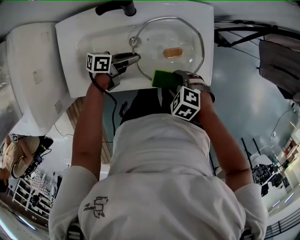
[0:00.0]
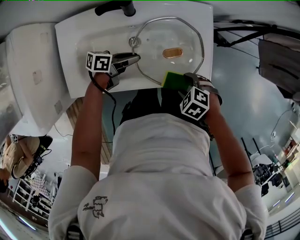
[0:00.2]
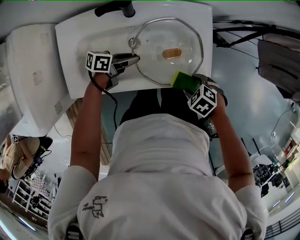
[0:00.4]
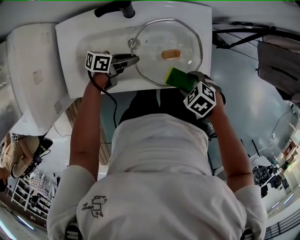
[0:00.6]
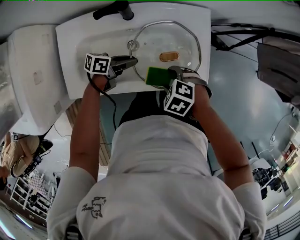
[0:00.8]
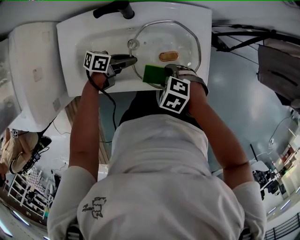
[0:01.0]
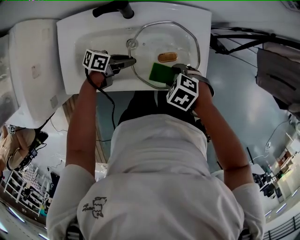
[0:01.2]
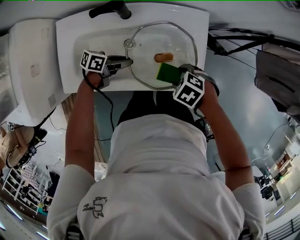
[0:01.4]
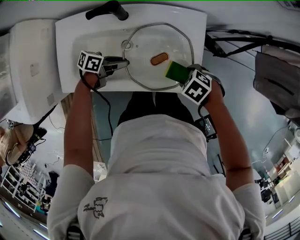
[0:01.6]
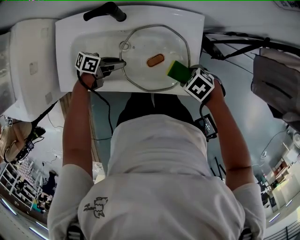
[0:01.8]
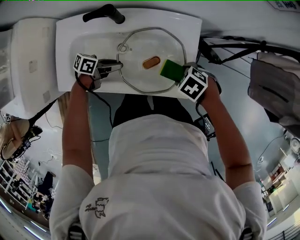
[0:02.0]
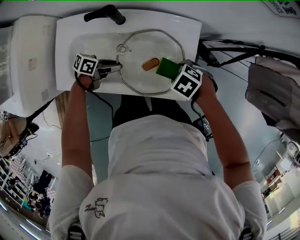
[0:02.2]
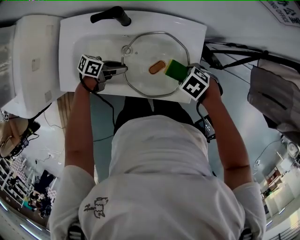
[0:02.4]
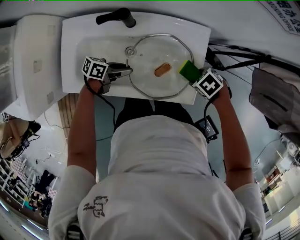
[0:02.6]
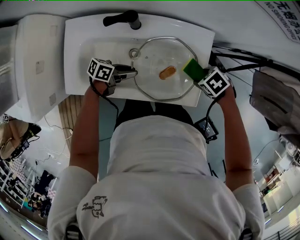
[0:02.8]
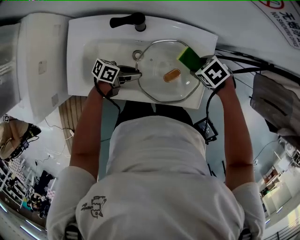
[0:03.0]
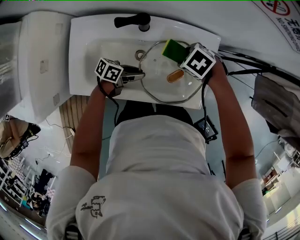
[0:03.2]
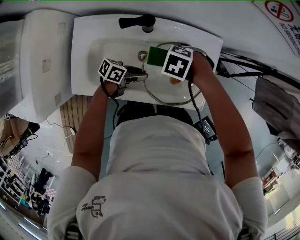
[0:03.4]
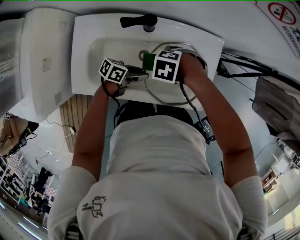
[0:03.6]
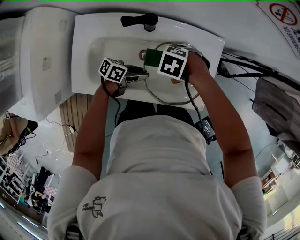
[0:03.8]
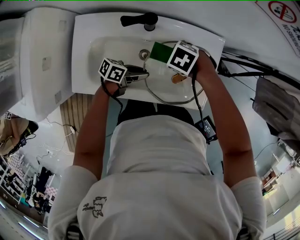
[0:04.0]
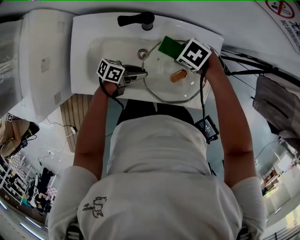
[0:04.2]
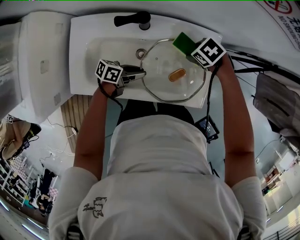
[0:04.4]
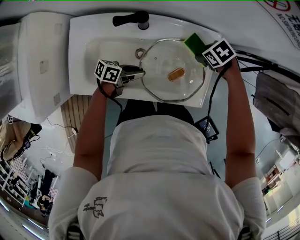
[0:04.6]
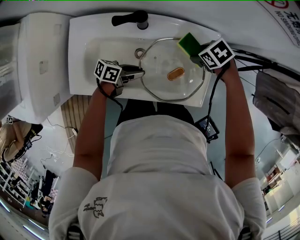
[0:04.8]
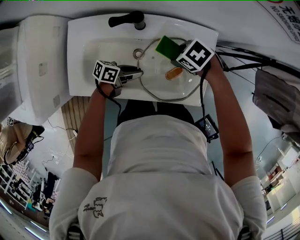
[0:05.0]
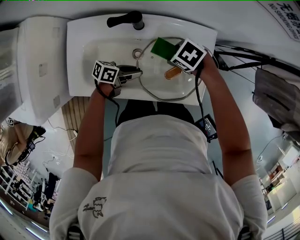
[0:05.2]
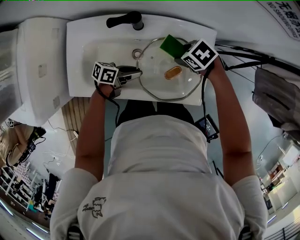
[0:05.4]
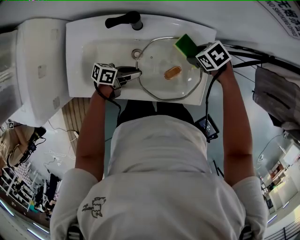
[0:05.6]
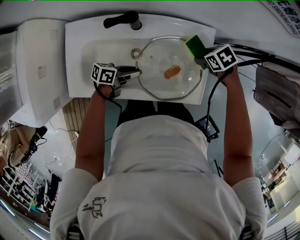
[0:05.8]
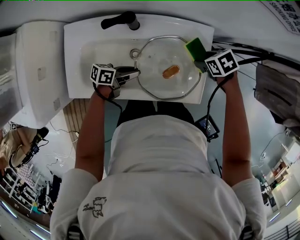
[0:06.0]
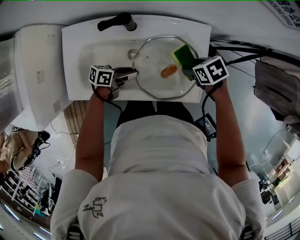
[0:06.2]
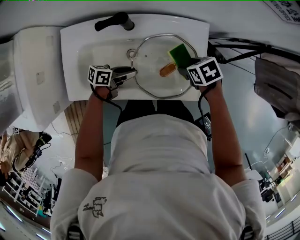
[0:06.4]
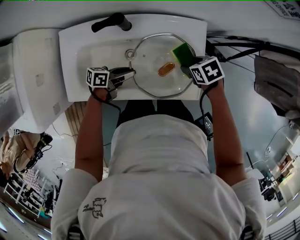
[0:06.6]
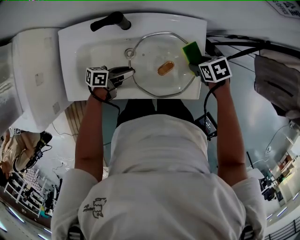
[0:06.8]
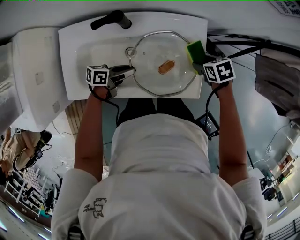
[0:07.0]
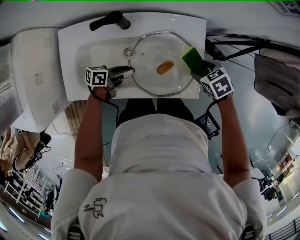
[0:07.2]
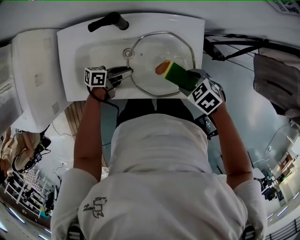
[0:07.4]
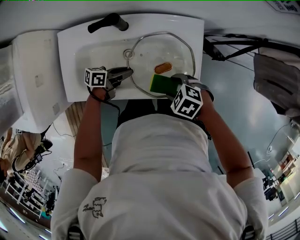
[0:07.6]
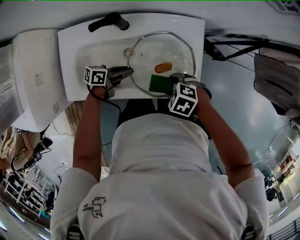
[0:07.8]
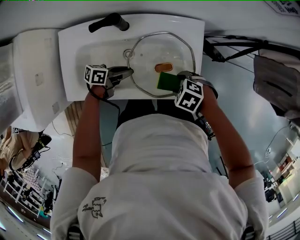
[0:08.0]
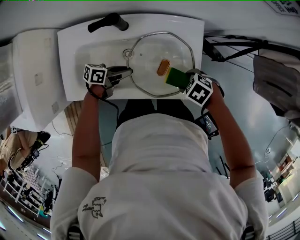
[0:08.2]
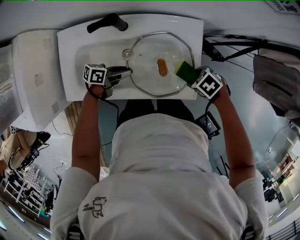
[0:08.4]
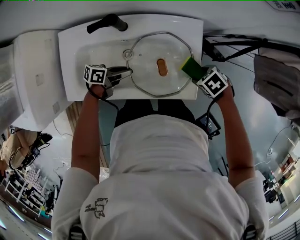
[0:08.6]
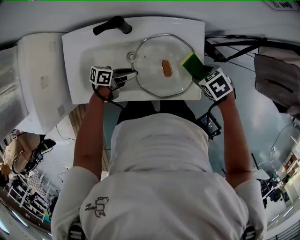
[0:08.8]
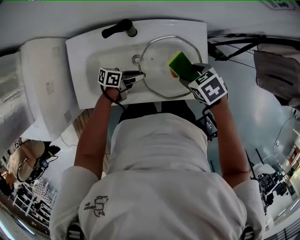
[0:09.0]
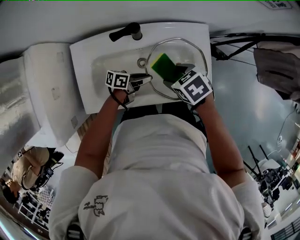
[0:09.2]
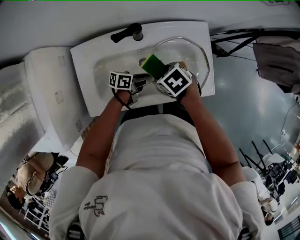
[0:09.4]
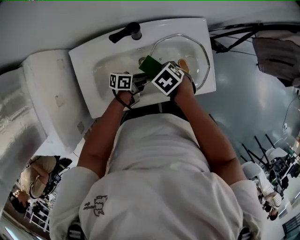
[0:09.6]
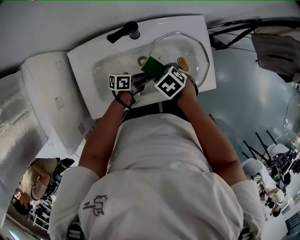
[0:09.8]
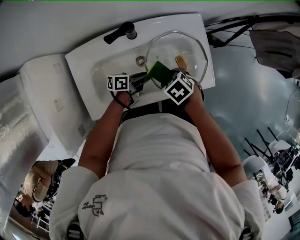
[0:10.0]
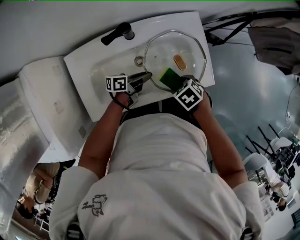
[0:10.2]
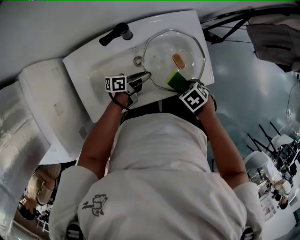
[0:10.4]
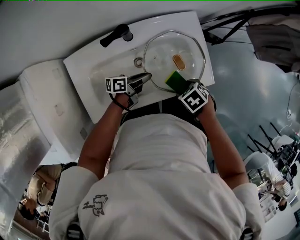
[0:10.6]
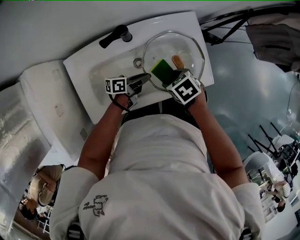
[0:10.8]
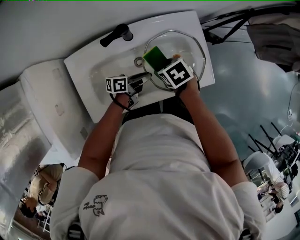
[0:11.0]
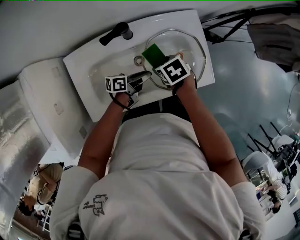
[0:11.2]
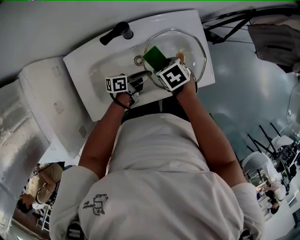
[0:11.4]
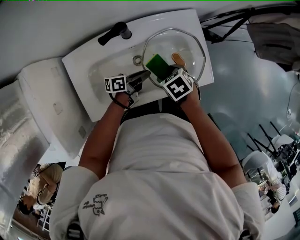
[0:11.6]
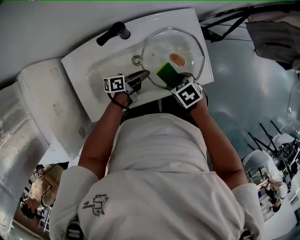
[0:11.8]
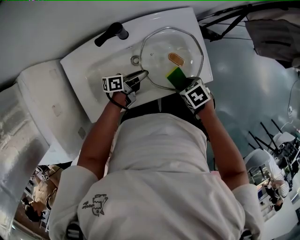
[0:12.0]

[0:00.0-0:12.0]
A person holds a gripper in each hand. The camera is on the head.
0:00.0 to 0:01.6: The right gripper moves roughly 15 cm.
0:01.6 to 0:03.0: The right gripper ends up about 15 cm from where it was.
0:04.4 to 0:06.0: The right gripper ends up roughly 10 cm from where it was, and turns by approximately 20 degrees.
0:06.0 to 0:07.6: The right gripper shifts by approximately 20 cm, and swivels some 30 degrees.
0:07.6 to 0:09.0: The right gripper turns by roughly 30 degrees.
0:09.0 to 0:10.4: The right gripper ends up approximately 15 cm from where it was.

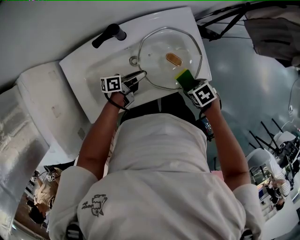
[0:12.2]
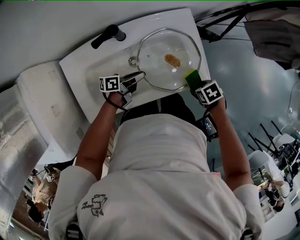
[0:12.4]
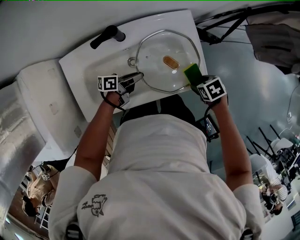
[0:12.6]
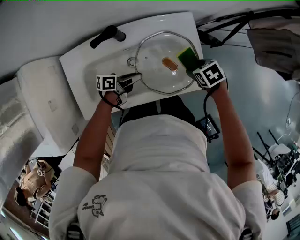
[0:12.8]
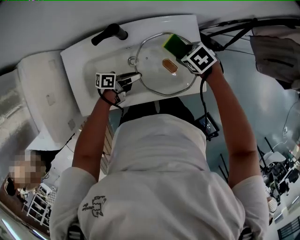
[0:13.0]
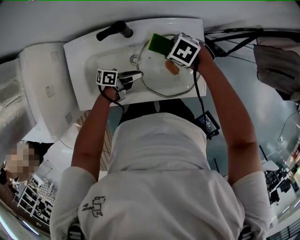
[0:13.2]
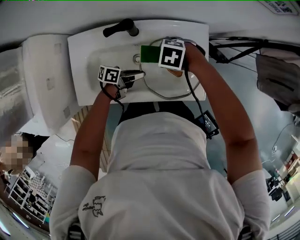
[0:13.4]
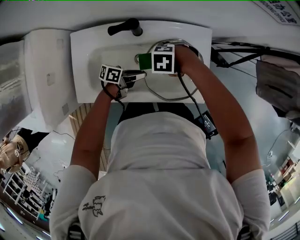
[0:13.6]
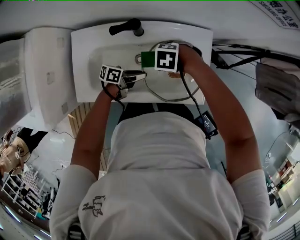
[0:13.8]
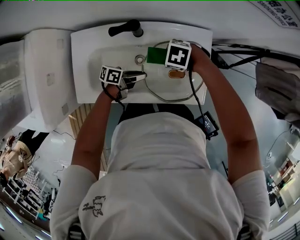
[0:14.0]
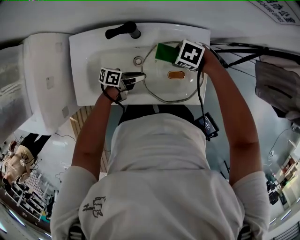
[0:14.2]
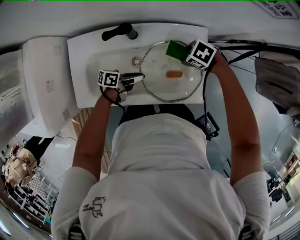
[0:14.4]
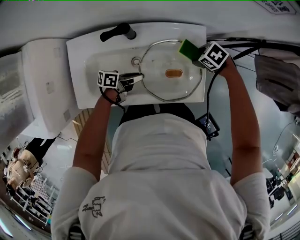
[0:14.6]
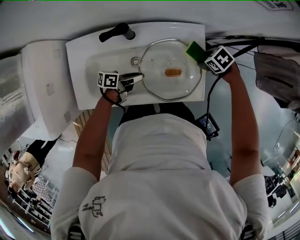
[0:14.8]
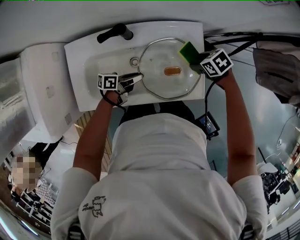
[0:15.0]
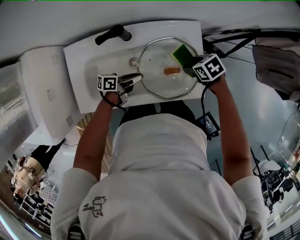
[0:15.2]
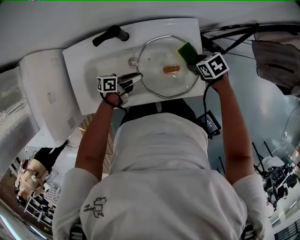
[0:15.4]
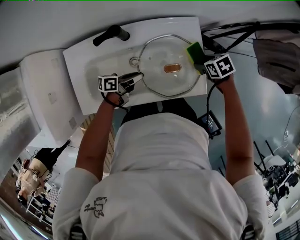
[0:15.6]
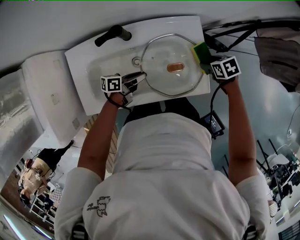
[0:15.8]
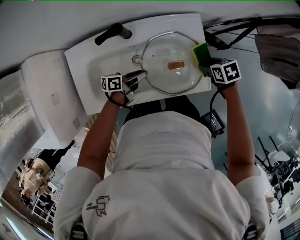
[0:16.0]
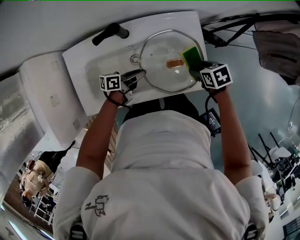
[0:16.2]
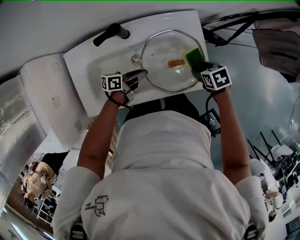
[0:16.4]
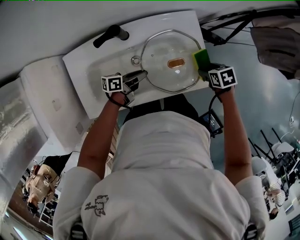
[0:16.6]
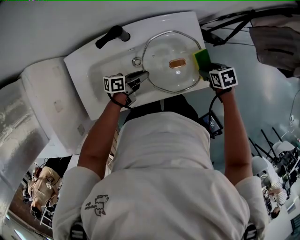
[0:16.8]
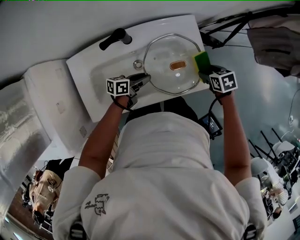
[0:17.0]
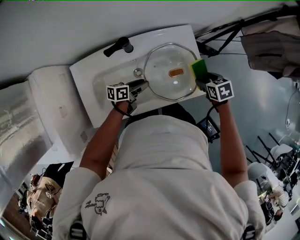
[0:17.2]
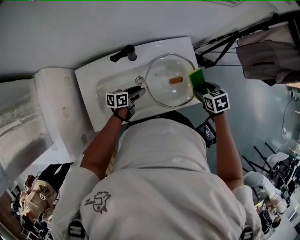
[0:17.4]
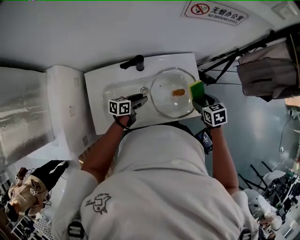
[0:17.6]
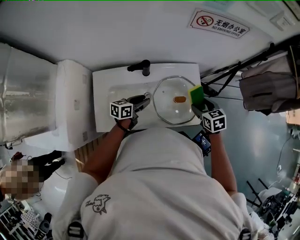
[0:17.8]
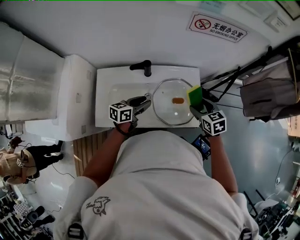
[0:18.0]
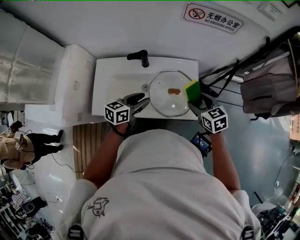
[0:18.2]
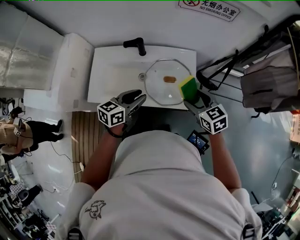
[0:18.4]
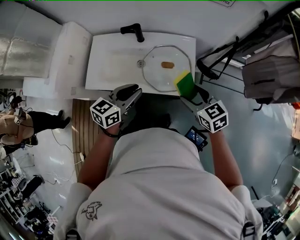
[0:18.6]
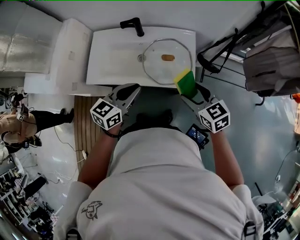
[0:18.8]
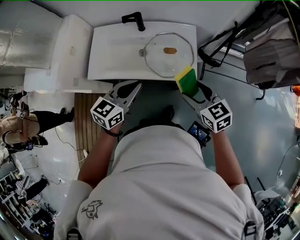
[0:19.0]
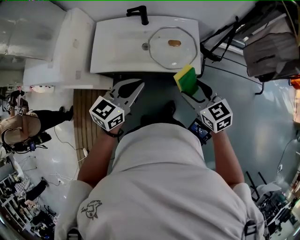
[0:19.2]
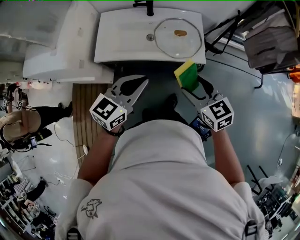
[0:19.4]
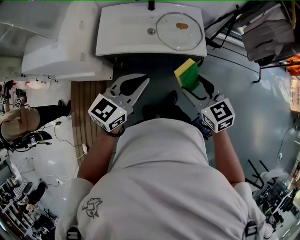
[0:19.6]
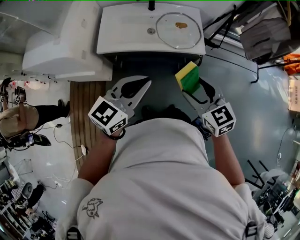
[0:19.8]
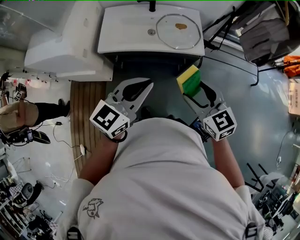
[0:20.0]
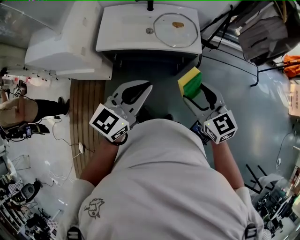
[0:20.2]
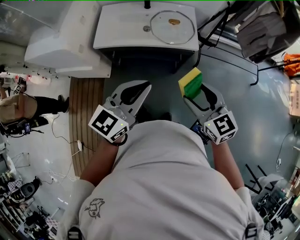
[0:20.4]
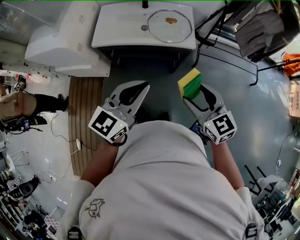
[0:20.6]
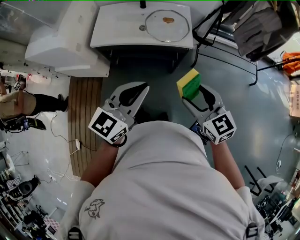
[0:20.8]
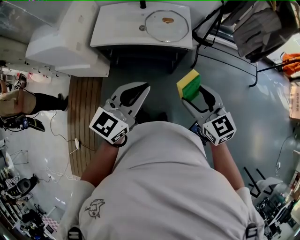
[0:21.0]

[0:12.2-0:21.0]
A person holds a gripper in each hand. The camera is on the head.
0:12.2 to 0:13.6: The right gripper moves roughly 25 cm, and rolls counterclockwise, seen from behind, by some 70 degrees.
0:13.6 to 0:15.2: The right gripper ends up about 20 cm from where it was, and rolls clockwise, seen from behind, by about 60 degrees.
0:15.2 to 0:16.6: The right gripper ends up approximately 10 cm from where it was, and swivels roughly 20 degrees.
0:16.6 to 0:18.0: The two grippers go some 20 cm upward. The left gripper changes its angle by approximately 30 degrees, and opens its fingers. The right gripper turns by approximately 30 degrees.
0:18.0 to 0:19.6: The right gripper travels backward by roughly 35 cm, and swivels about 20 degrees. Meanwhile the left gripper travels backward and upward by about 40 cm, changes its angle by approximately 30 degrees, and closes.
0:19.6 to 0:21.0: Both grippers travel together backward and to the right, about 20 cm.

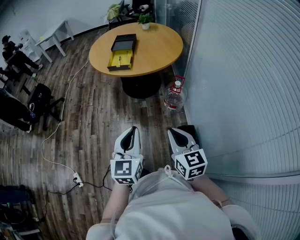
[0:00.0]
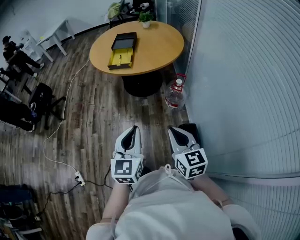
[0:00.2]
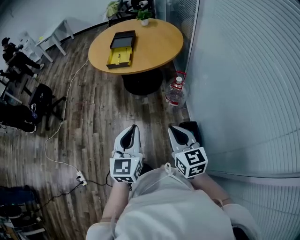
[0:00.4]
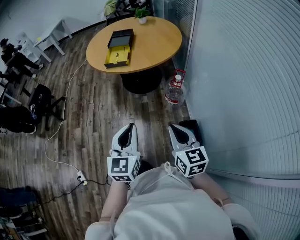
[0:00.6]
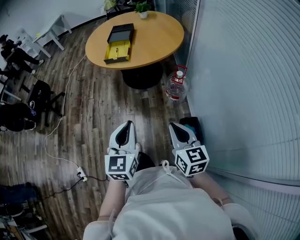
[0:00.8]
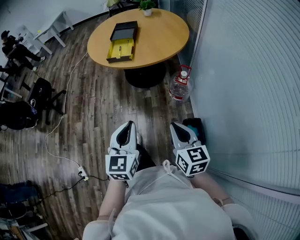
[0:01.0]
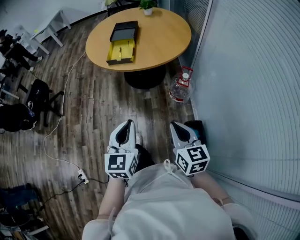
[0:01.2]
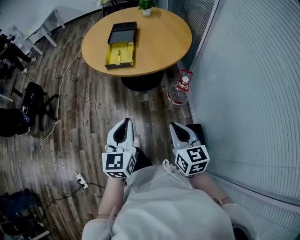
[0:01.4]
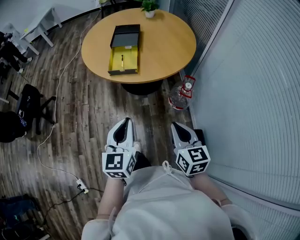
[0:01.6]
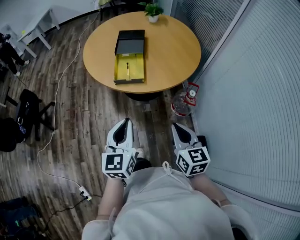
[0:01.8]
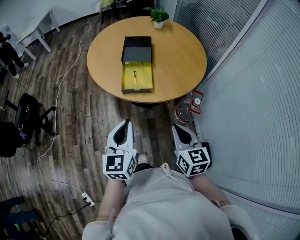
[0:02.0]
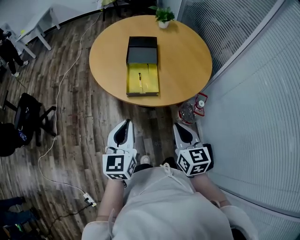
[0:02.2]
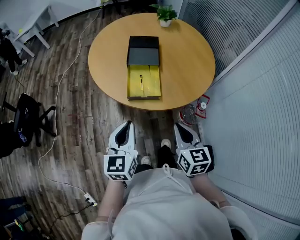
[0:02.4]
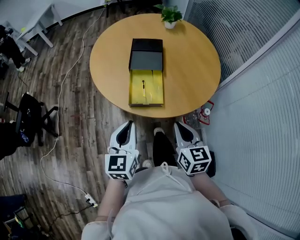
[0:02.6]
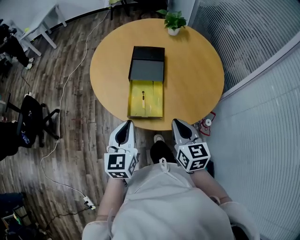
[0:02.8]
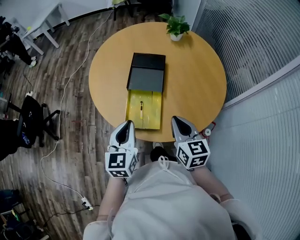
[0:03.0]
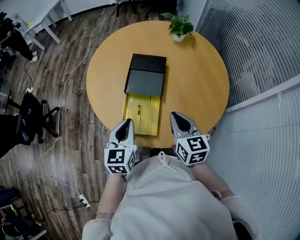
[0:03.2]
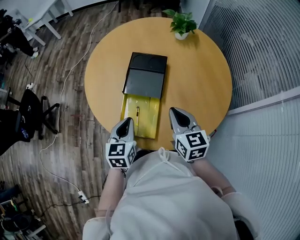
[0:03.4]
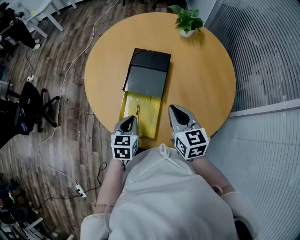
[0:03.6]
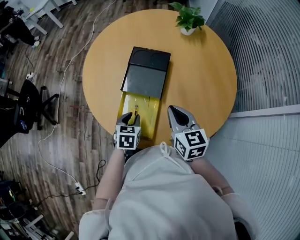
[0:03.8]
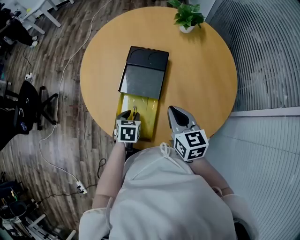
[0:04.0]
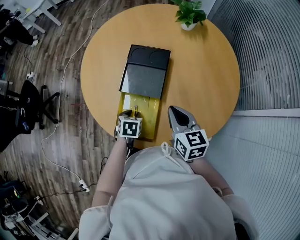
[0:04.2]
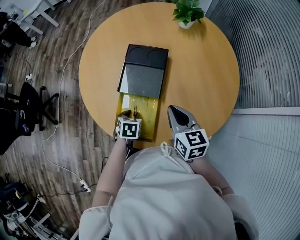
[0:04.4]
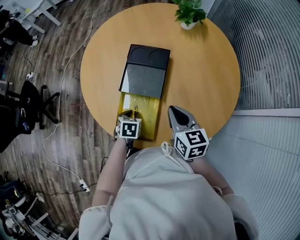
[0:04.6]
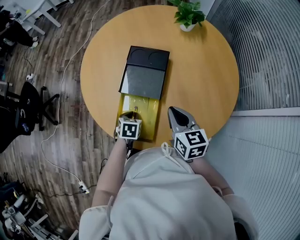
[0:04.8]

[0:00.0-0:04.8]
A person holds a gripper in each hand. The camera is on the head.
0:00.0 to 0:01.6: The two grippers go some 25 cm forward.
0:01.6 to 0:03.2: Both grippers are carried forward, roughly 50 cm.
0:03.2 to 0:04.8: The left gripper is displaced downward by roughly 20 cm, and tilts its fingers roughly 40 degrees downward; the right gripper travels forward and downward by roughly 10 cm.
